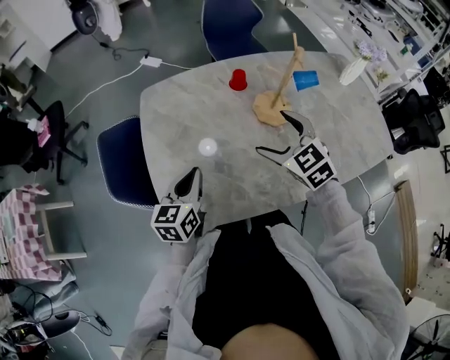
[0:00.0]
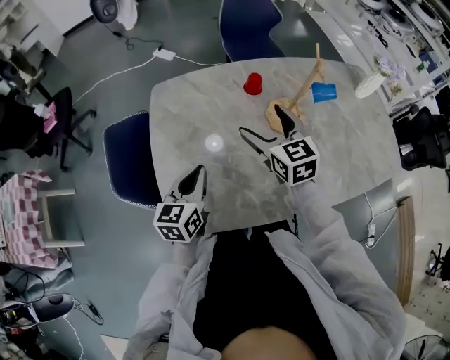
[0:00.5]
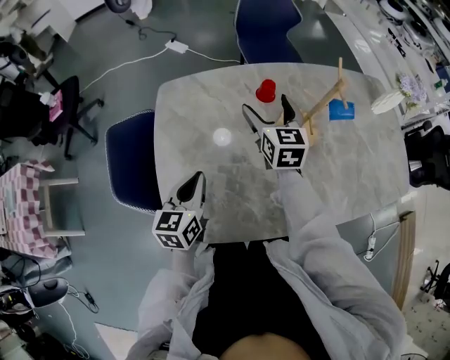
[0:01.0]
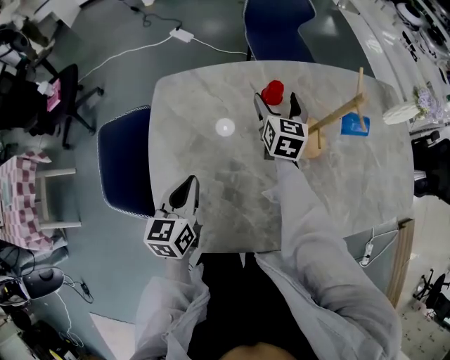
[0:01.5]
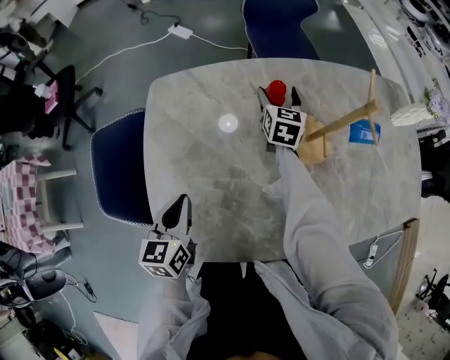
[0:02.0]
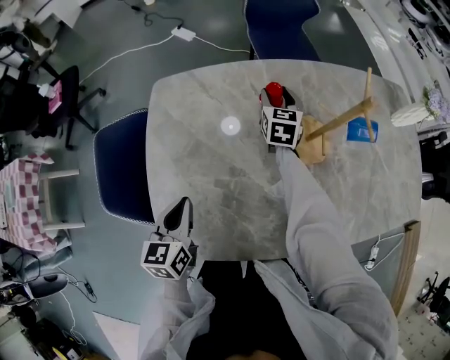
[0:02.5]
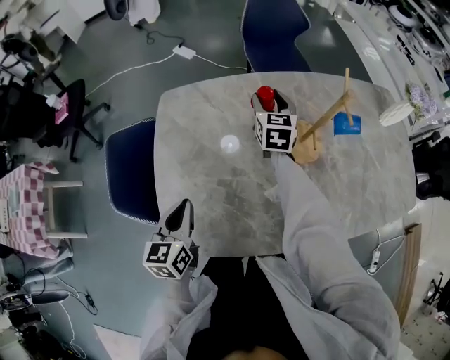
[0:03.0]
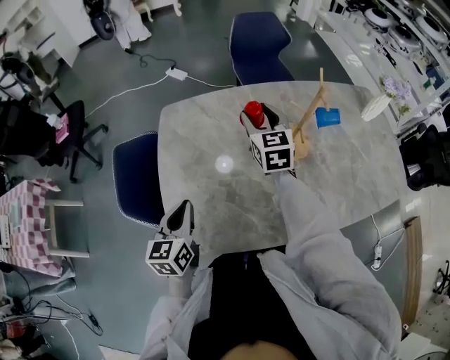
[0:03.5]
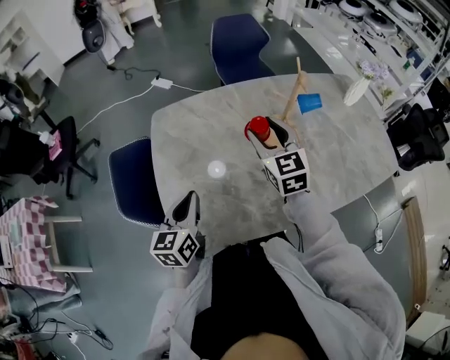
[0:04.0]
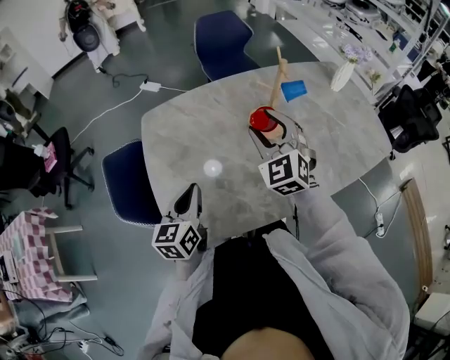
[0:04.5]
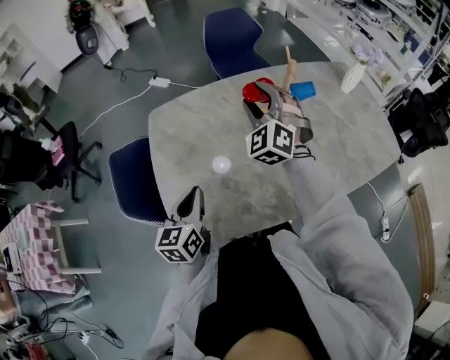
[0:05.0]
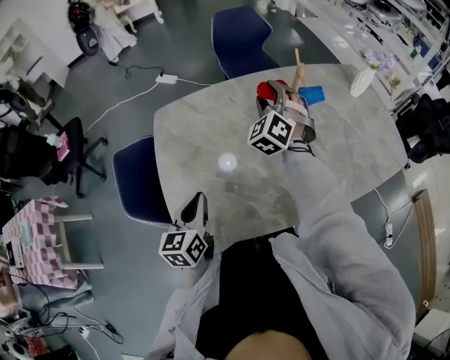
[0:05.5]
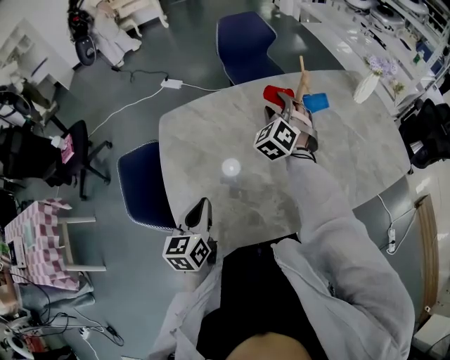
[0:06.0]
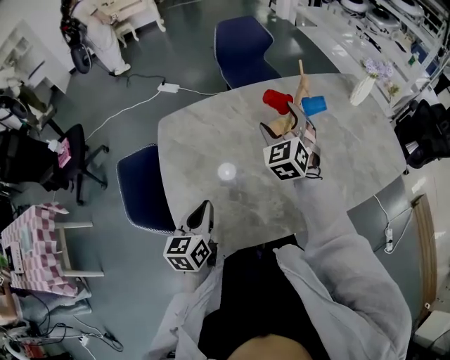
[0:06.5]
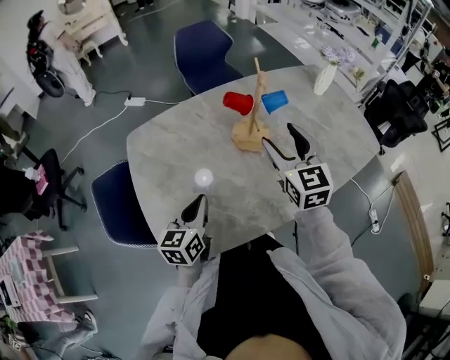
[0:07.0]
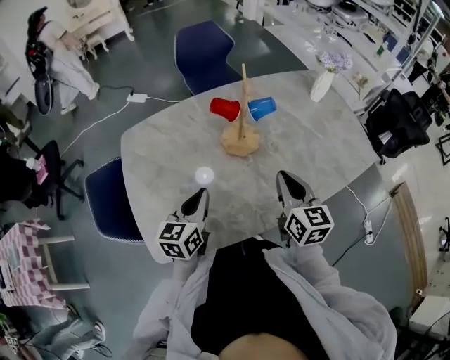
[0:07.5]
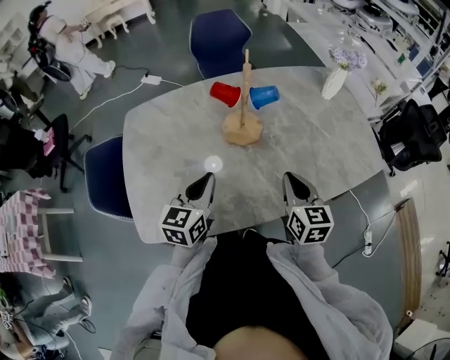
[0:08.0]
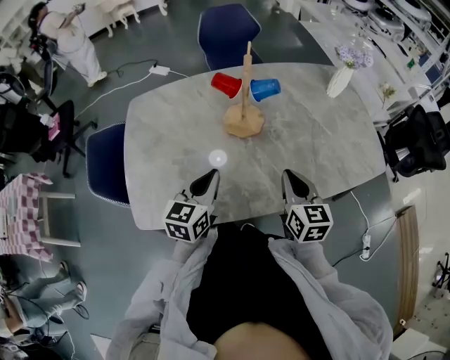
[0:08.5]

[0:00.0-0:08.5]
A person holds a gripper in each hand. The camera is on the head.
0:00.0 to 0:02.0: The left gripper is displaced forward and downward by roughly 10 cm. Meanwhile the right gripper travels forward and downward by roughly 35 cm, and turns by some 40 degrees.
0:02.0 to 0:04.0: The right gripper heads backward and upward, covering approximately 30 cm, and turns by about 20 degrees; the left gripper shifts some 10 cm upward and backward.
0:04.0 to 0:06.5: The right gripper is displaced forward by roughly 5 cm, turns by approximately 30 degrees, and opens.
0:06.5 to 0:08.5: The right gripper shifts roughly 30 cm to the right and backward, twists about 50 degrees clockwise, seen from behind, and closes its fingers; the left gripper goes approximately 20 cm to the right.

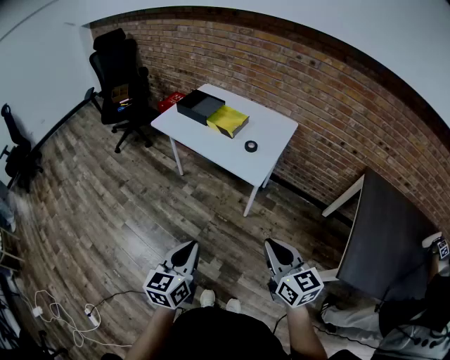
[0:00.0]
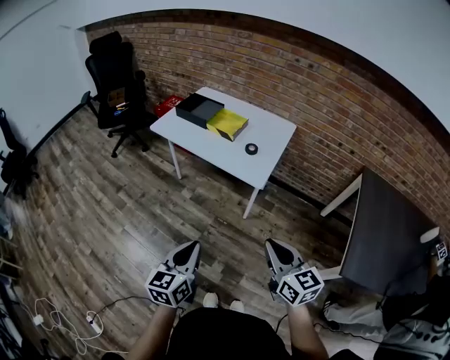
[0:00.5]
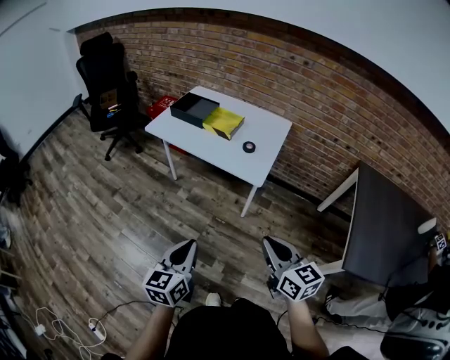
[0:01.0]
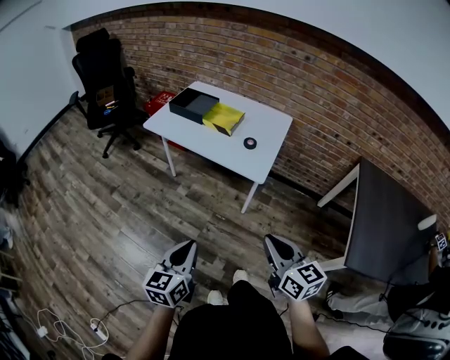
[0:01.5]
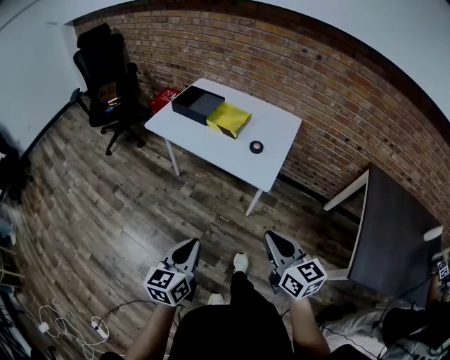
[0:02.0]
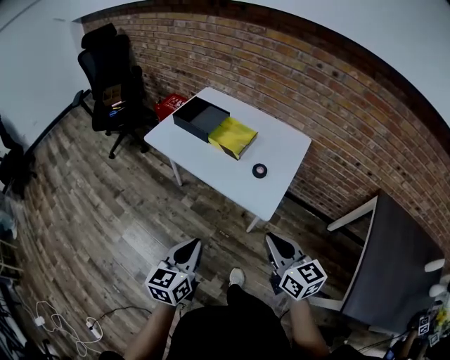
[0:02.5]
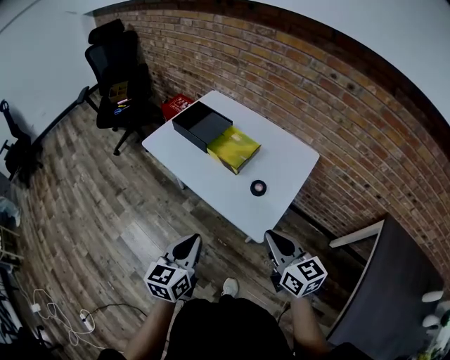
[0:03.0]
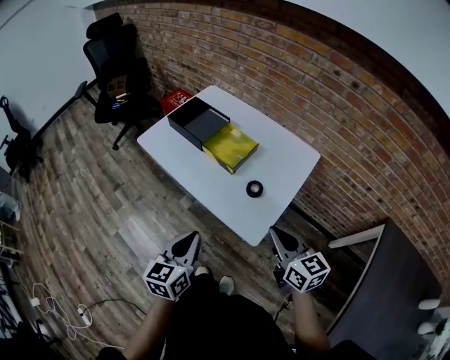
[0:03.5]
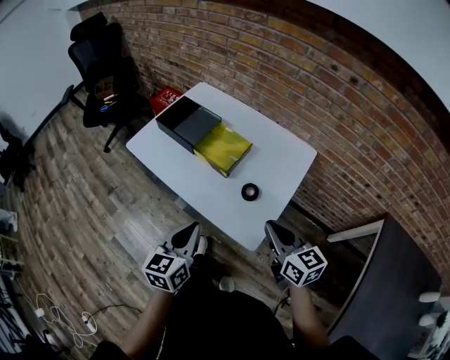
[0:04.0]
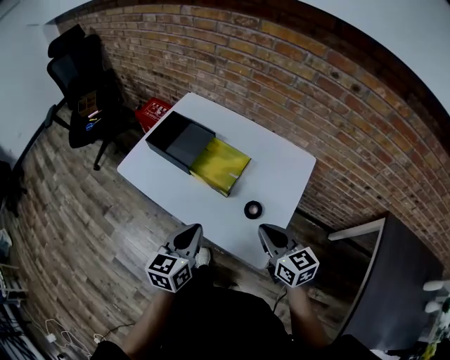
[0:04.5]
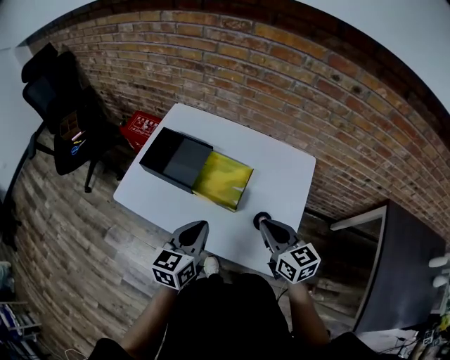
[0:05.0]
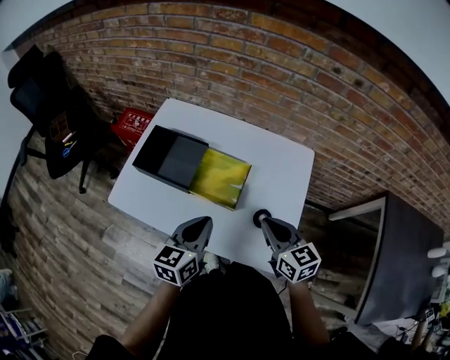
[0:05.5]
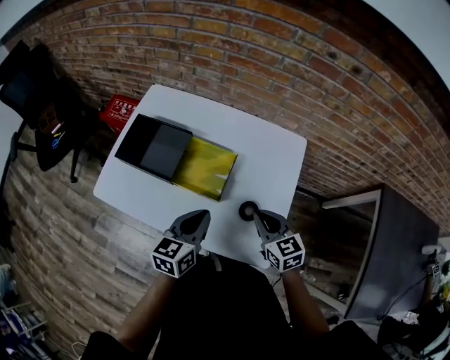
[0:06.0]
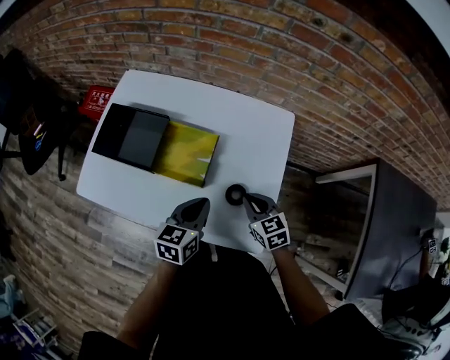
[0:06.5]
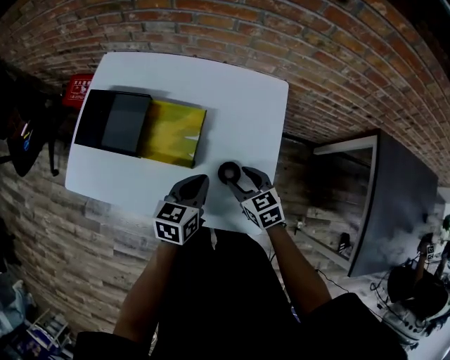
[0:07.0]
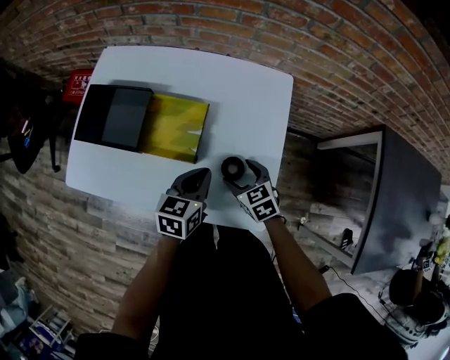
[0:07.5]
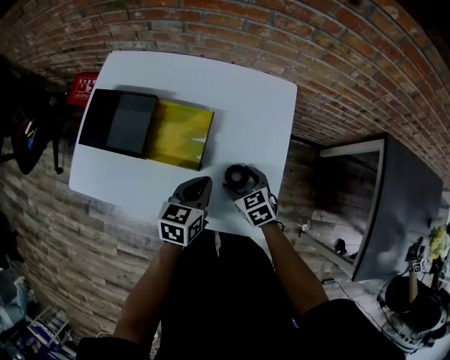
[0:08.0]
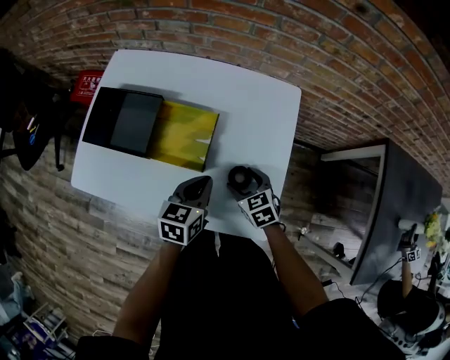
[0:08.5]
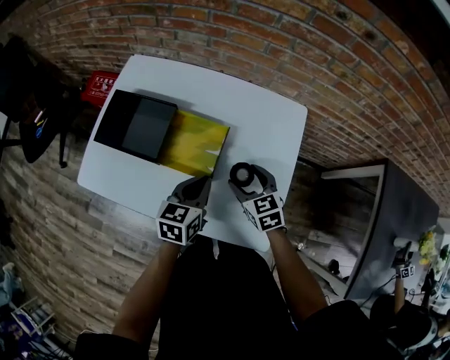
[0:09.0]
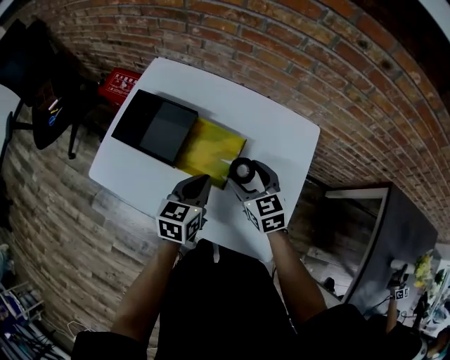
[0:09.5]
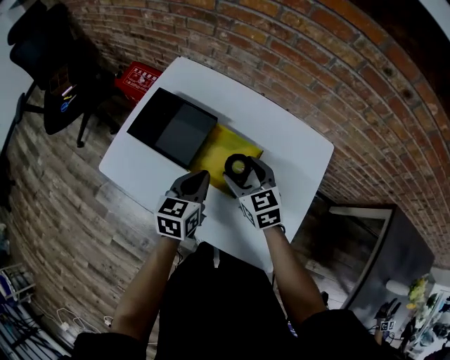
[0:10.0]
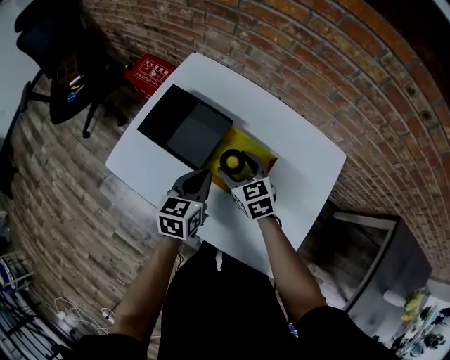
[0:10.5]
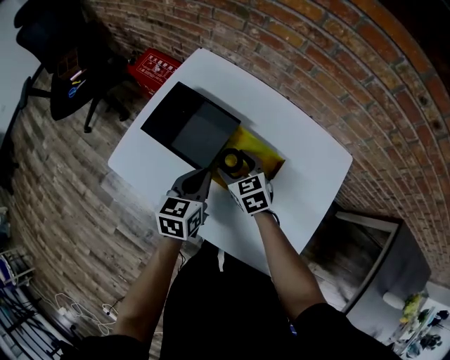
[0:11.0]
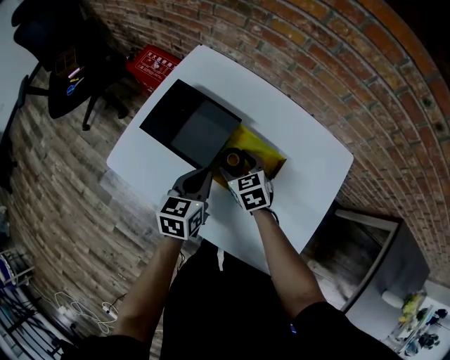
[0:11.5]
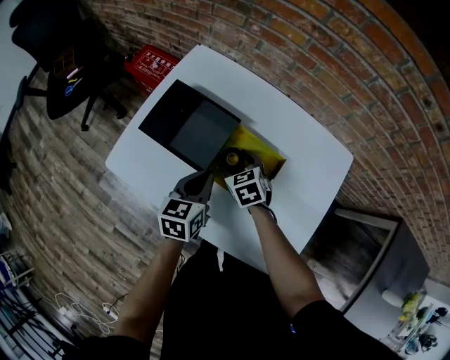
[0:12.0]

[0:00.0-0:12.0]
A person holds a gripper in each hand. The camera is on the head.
0:00.0 to 0:02.0: Both grippers move forward and to the left, roughly 10 cm.
0:02.0 to 0:04.0: The left gripper is displaced forward and to the right by some 30 cm; the right gripper goes approximately 30 cm forward.
0:04.0 to 0:06.0: The left gripper moves forward, roughly 20 cm, and swivels approximately 30 degrees, while the right gripper travels forward and downward by approximately 15 cm, and changes its angle by some 20 degrees.
0:06.0 to 0:08.0: The left gripper heads downward and to the right, covering about 10 cm. Meanwhile the right gripper goes about 15 cm downward, and opens up.
0:08.0 to 0:10.0: The left gripper travels to the left, forward and upward by approximately 15 cm, and changes its angle by roughly 20 degrees. The right gripper moves to the left, upward and forward, some 20 cm, and changes its angle by approximately 20 degrees.
0:10.0 to 0:12.0: The left gripper changes place by roughly 5 cm. Meanwhile the right gripper travels downward, to the left and forward by roughly 15 cm.

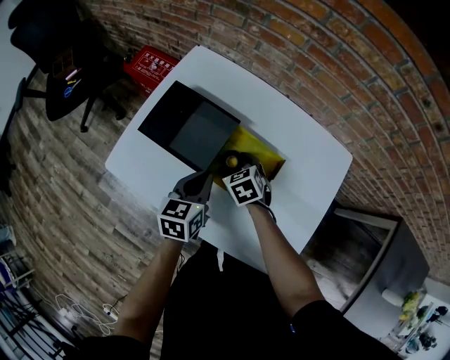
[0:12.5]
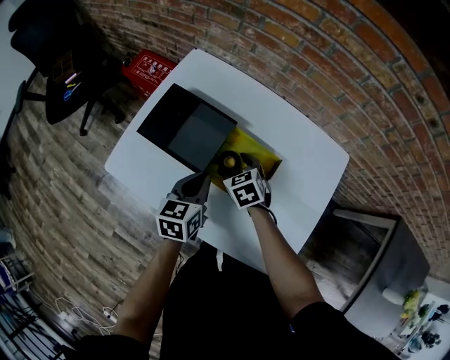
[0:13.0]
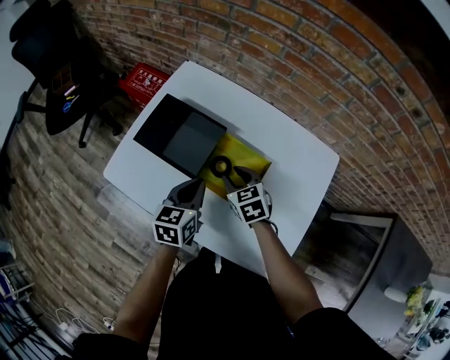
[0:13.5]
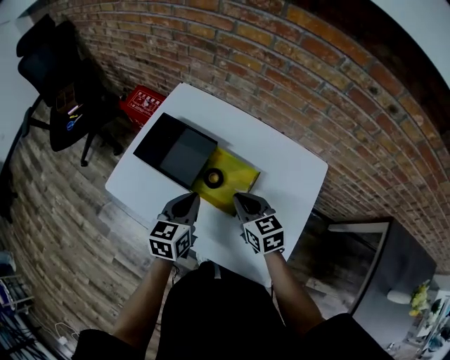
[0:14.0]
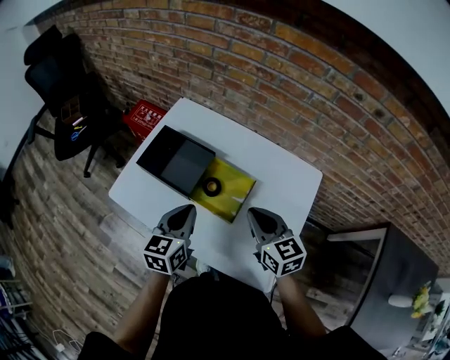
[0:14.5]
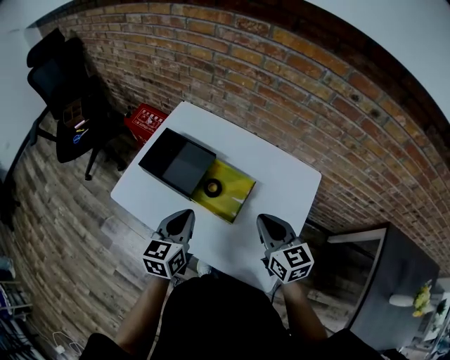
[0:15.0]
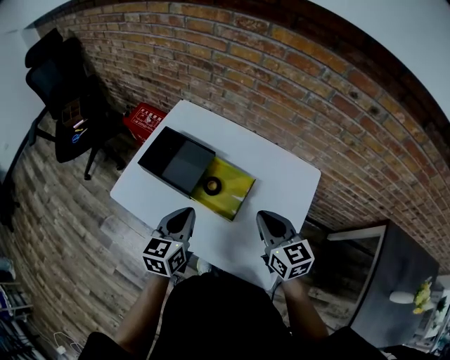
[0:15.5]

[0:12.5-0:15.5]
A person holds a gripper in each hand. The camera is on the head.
0:12.5 to 0:14.0: The right gripper is displaced upward, backward and to the right by about 20 cm, changes its angle by about 30 degrees, and closes its fingers; the left gripper is displaced upward by approximately 5 cm.
0:14.0 to 0:15.5: The right gripper goes approximately 15 cm upward, to the right and backward, while the left gripper ends up roughly 5 cm from where it was.

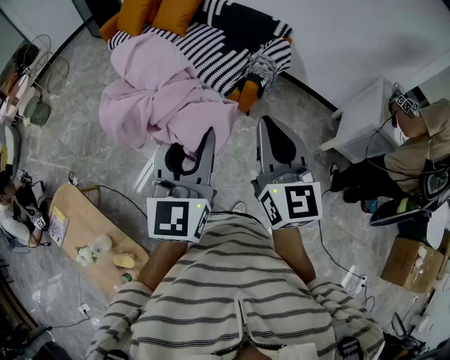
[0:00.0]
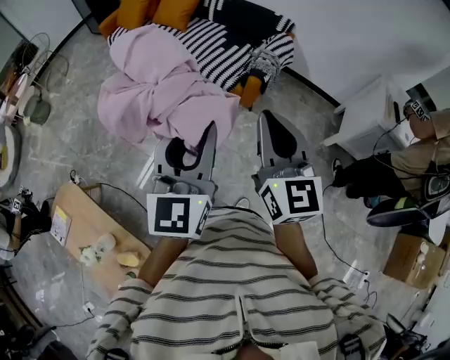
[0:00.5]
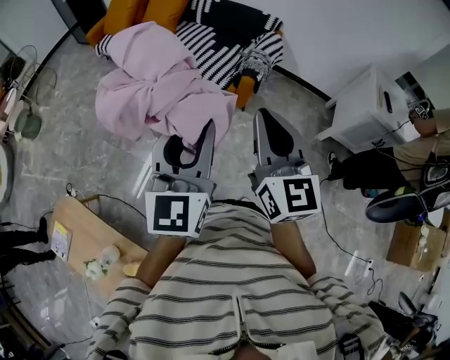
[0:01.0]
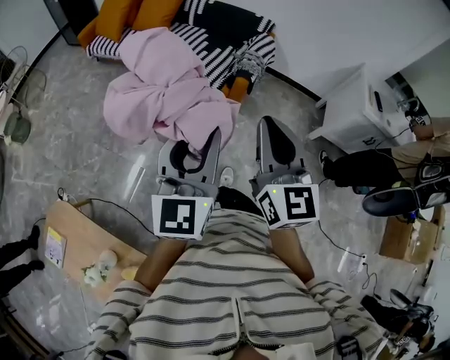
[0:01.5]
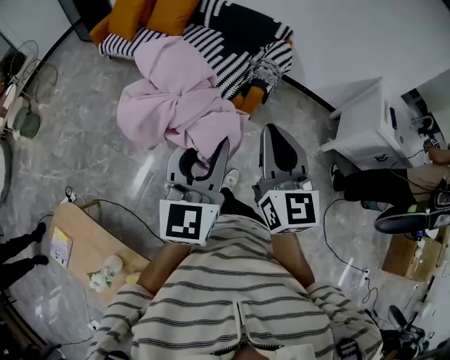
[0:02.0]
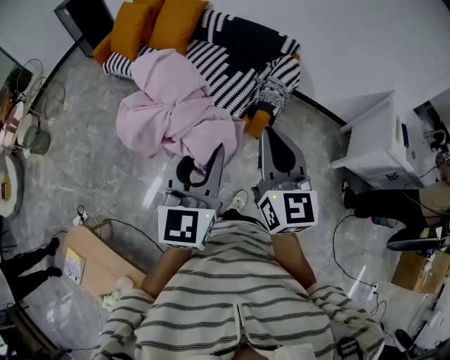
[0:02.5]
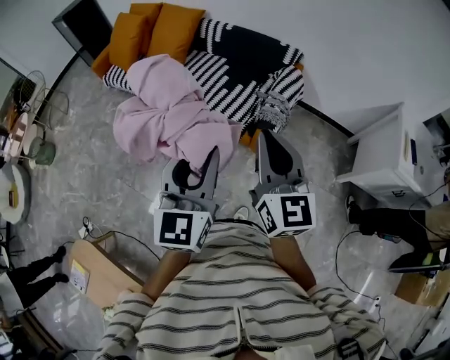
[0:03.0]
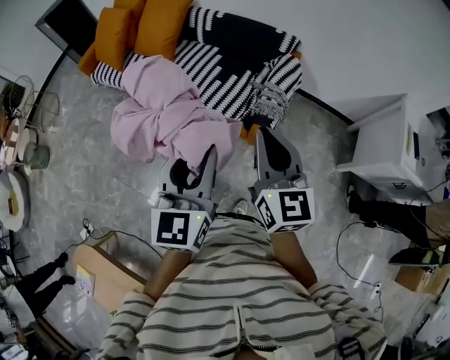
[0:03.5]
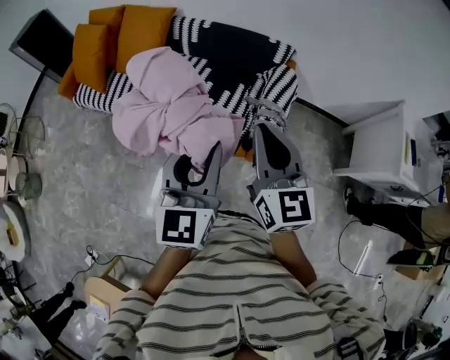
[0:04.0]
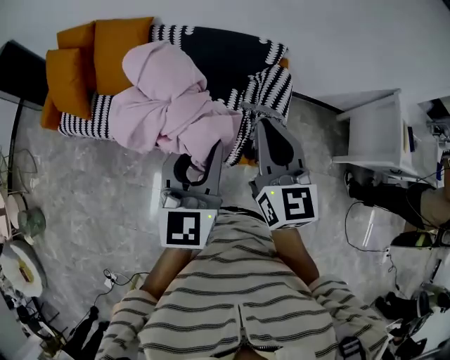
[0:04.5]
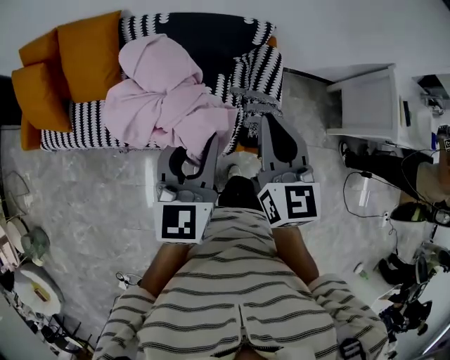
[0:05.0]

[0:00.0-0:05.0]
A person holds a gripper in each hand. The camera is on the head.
0:00.0 to 0:02.5: Both grippers move forward, roughly 20 cm.
0:02.5 to 0:05.0: The two grippers travel together, roughly 60 cm. The right gripper turns by roughly 30 degrees. The left gripper rotates approximately 30 degrees.
